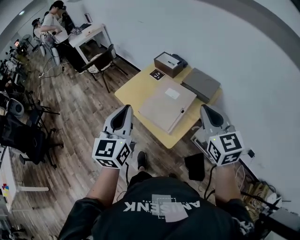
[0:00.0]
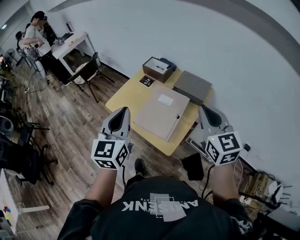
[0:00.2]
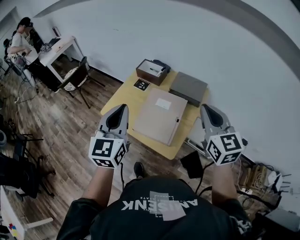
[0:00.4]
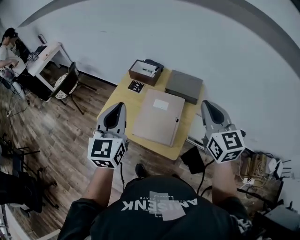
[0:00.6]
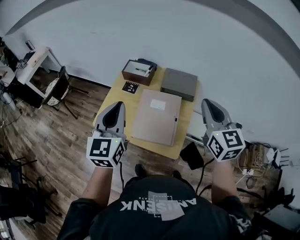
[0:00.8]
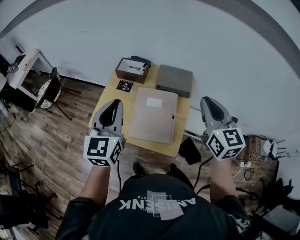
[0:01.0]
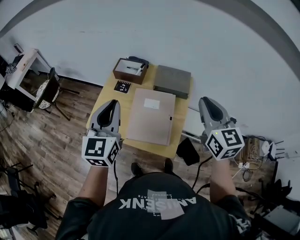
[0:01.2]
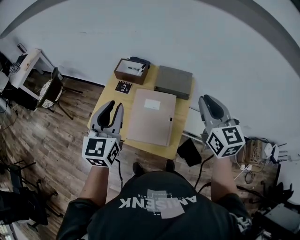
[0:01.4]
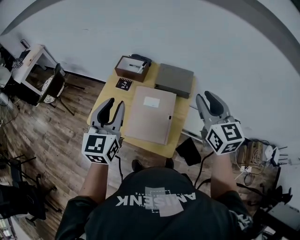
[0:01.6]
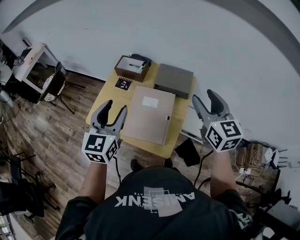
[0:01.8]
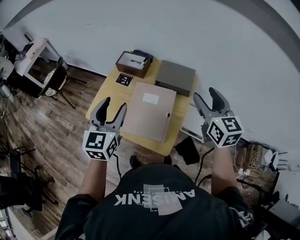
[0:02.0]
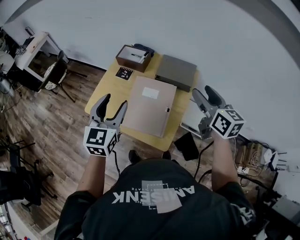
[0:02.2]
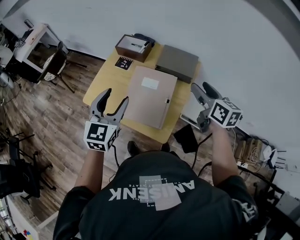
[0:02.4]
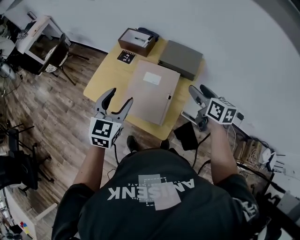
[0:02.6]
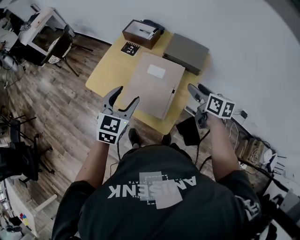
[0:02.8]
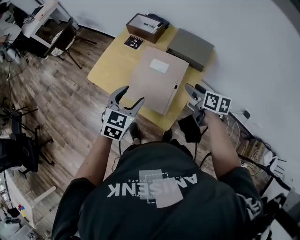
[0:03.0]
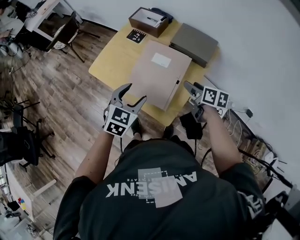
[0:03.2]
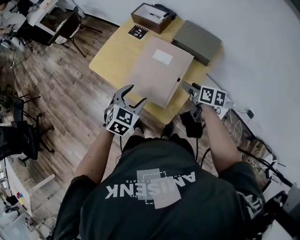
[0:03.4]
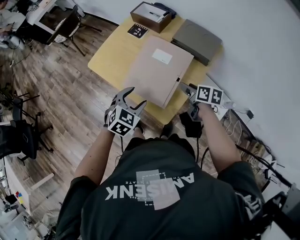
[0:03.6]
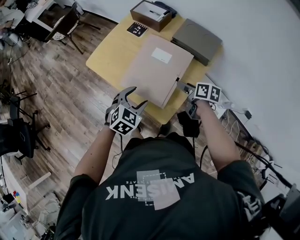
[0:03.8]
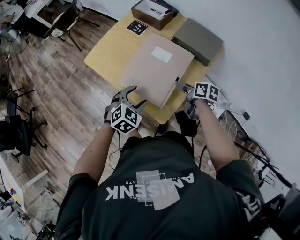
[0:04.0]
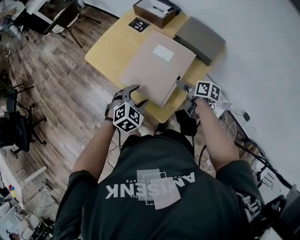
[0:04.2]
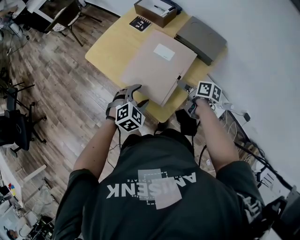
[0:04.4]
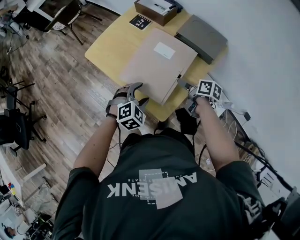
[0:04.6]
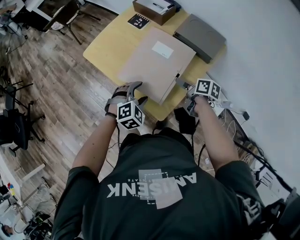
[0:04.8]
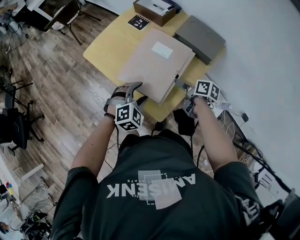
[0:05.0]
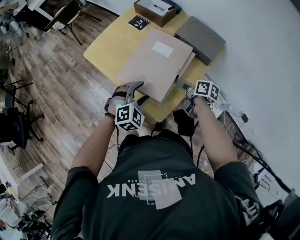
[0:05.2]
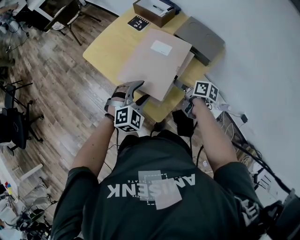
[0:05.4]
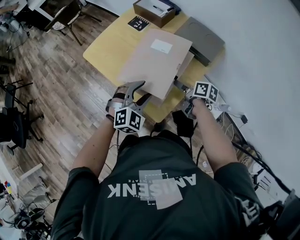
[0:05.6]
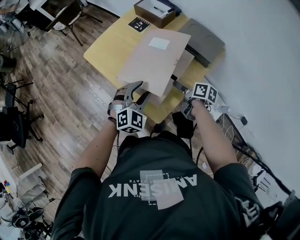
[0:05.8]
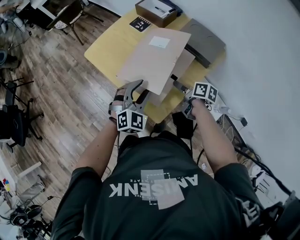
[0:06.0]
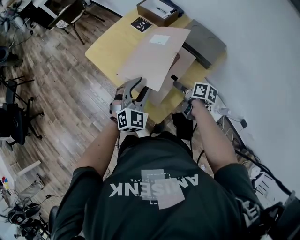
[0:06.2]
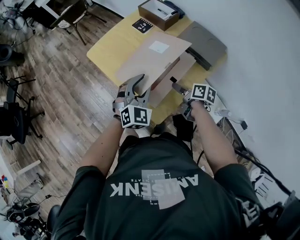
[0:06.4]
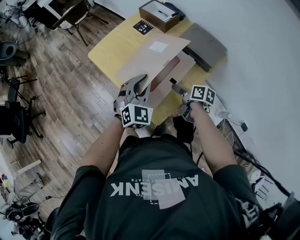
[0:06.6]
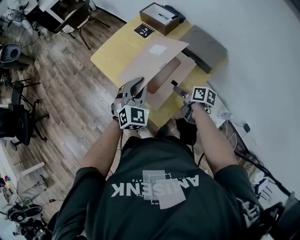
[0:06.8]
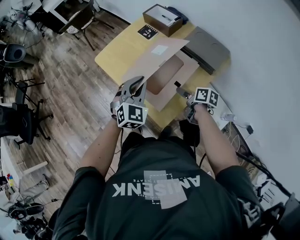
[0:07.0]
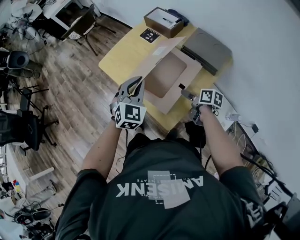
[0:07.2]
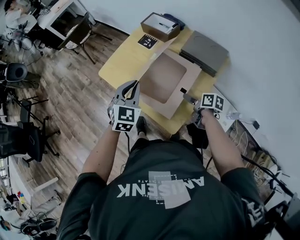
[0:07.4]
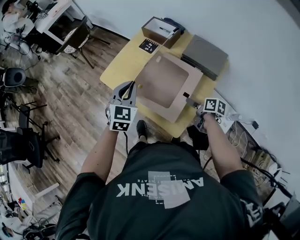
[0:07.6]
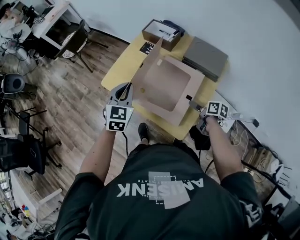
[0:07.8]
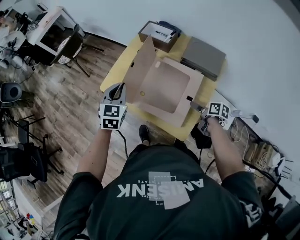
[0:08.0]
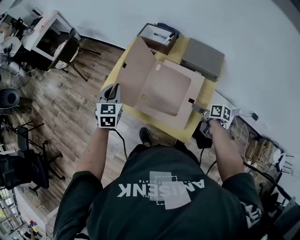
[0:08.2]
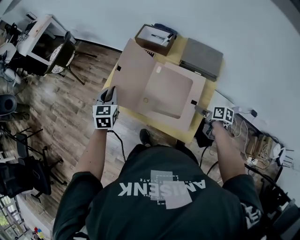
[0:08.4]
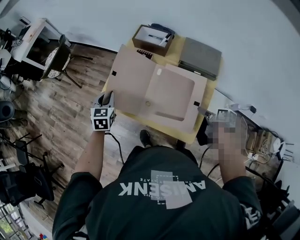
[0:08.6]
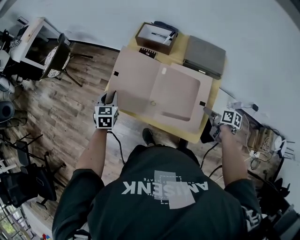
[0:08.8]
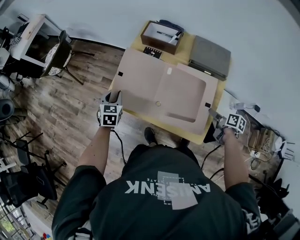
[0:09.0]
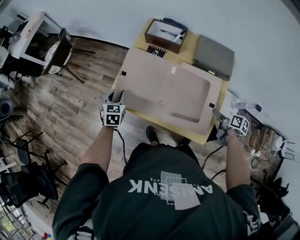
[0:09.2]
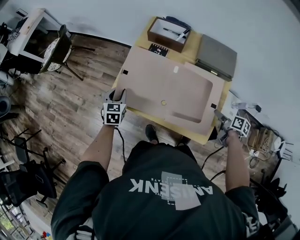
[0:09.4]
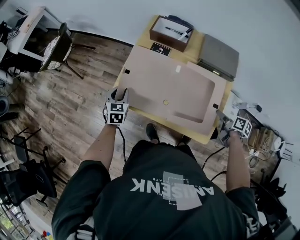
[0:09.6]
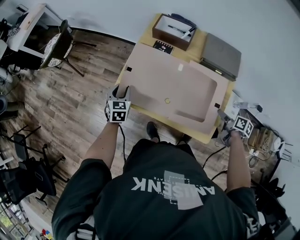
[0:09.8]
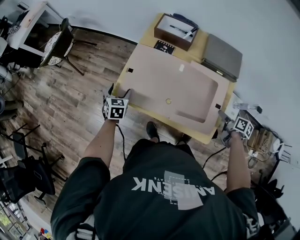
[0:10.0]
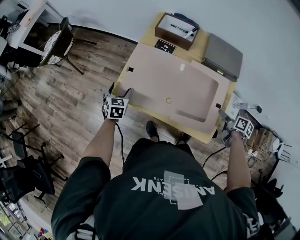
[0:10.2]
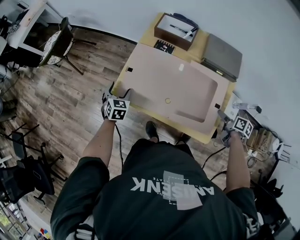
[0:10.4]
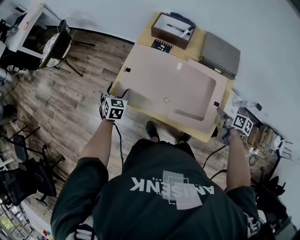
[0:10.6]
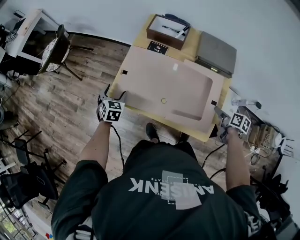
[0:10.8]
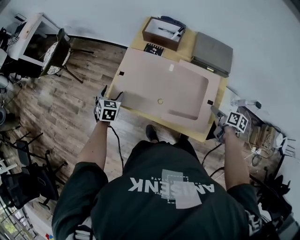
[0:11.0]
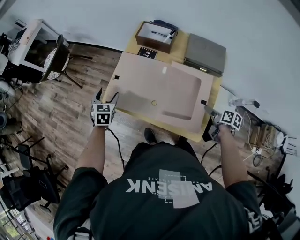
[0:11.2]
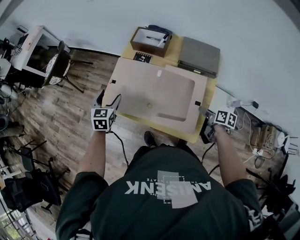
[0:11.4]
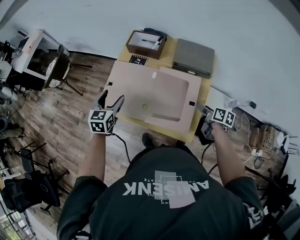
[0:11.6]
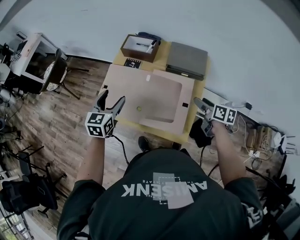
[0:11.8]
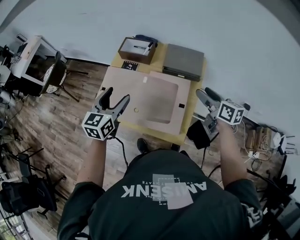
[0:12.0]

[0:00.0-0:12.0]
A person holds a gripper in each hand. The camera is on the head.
0:00.0 to 0:01.6: The right gripper ends up approximately 10 cm from where it was, and changes its angle by some 30 degrees; the left gripper changes place by about 20 cm, and turns by roughly 30 degrees.
0:01.6 to 0:03.0: Both grippers travel together downward, approximately 25 cm. The left gripper rotates some 30 degrees, and opens; the right gripper turns by roughly 50 degrees, and opens up.
0:03.0 to 0:04.4: The two grippers go some 15 cm downward. The left gripper changes its angle by some 30 degrees. Meanwhile the right gripper turns by some 20 degrees.
0:04.4 to 0:06.0: The left gripper moves upward, approximately 5 cm, and rotates roughly 30 degrees.
0:06.0 to 0:07.6: The left gripper shifts some 15 cm forward, upward and to the left, changes its angle by some 20 degrees, and closes up.
0:07.6 to 0:09.0: The right gripper changes its angle by some 20 degrees. The left gripper heads forward, to the left and downward, covering some 25 cm.
0:09.0 to 0:10.4: The left gripper heads downward, covering some 5 cm, and opens its fingers.
0:10.4 to 0:12.0: The right gripper heads upward, covering about 20 cm, and tips its fingers upward by approximately 30 degrees. Meanwhile the left gripper travels upward and to the right by approximately 35 cm, and swivels approximately 40 degrees.

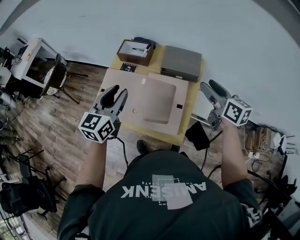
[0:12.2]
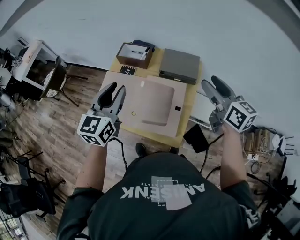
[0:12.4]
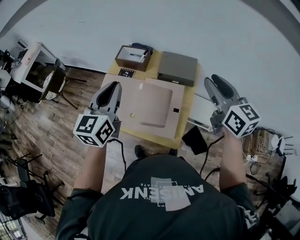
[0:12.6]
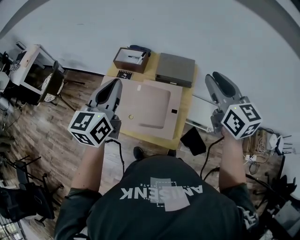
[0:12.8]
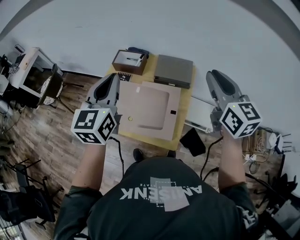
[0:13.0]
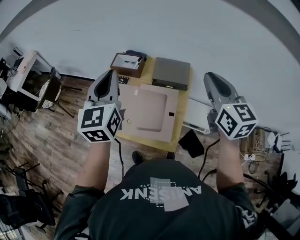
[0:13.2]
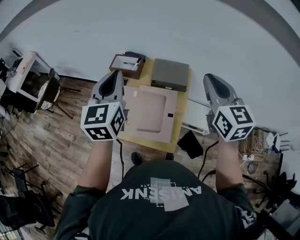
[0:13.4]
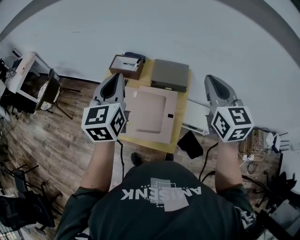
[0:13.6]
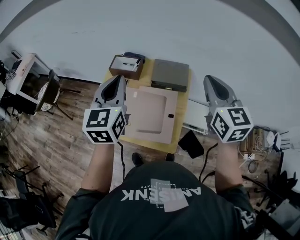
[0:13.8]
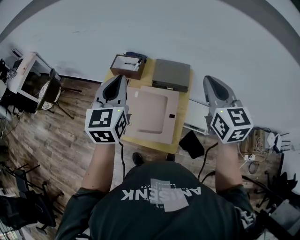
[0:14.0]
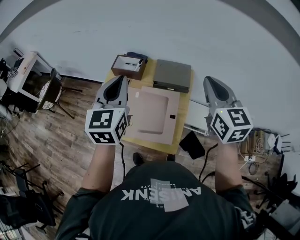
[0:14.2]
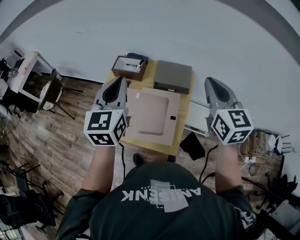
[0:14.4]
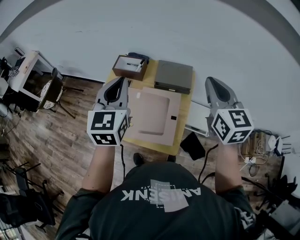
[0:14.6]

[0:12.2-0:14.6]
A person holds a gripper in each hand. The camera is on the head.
0:12.2 to 0:13.4: Both grippers move upward, about 15 cm. The left gripper closes up. The right gripper turns by roughly 30 degrees, and closes.
0:13.4 to 0:14.6: The grippers stay close to where they were, moving slightly.

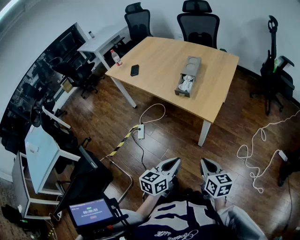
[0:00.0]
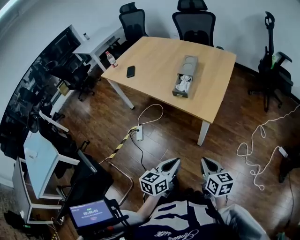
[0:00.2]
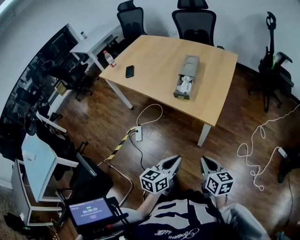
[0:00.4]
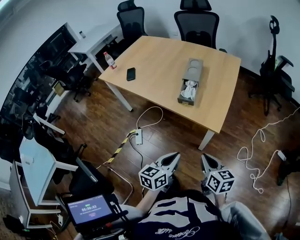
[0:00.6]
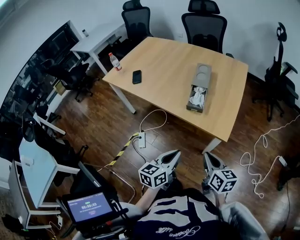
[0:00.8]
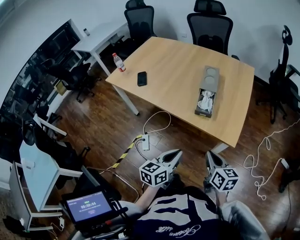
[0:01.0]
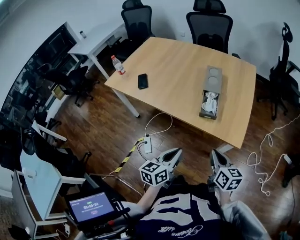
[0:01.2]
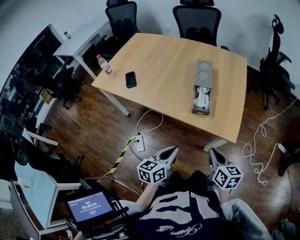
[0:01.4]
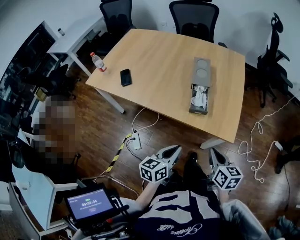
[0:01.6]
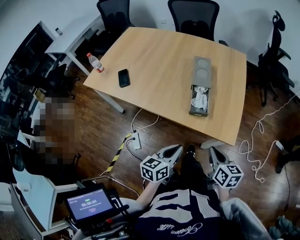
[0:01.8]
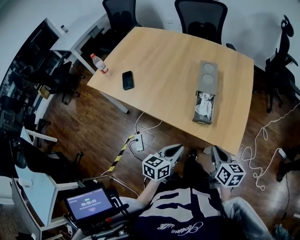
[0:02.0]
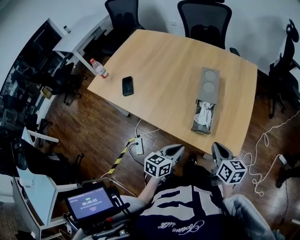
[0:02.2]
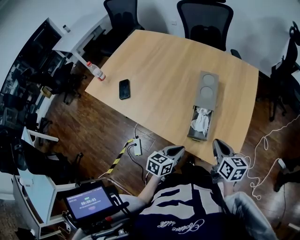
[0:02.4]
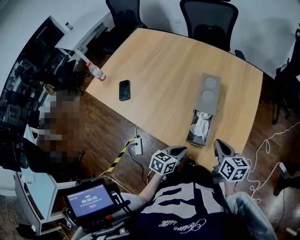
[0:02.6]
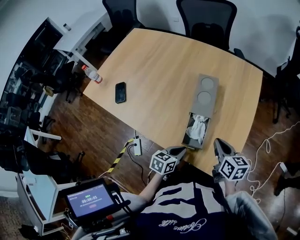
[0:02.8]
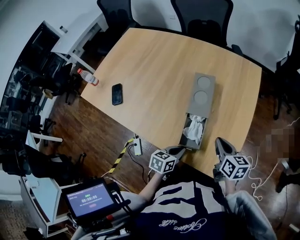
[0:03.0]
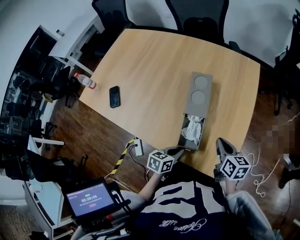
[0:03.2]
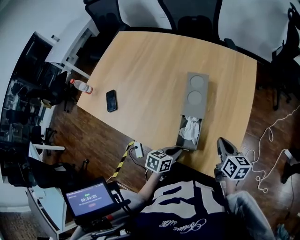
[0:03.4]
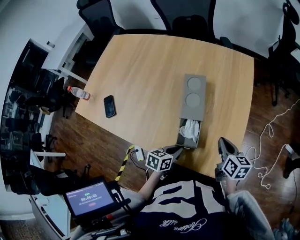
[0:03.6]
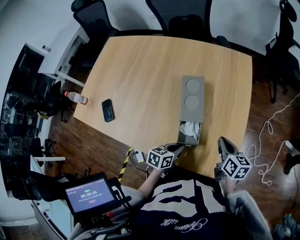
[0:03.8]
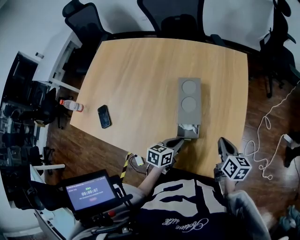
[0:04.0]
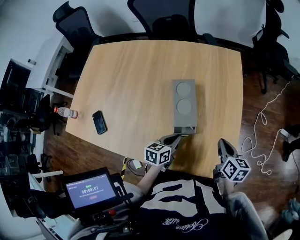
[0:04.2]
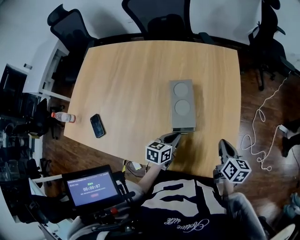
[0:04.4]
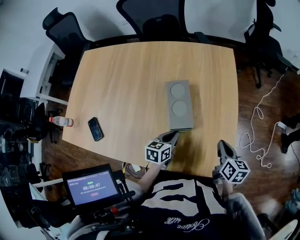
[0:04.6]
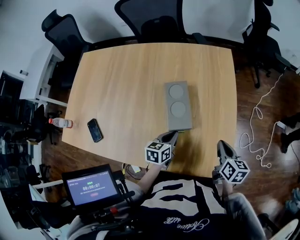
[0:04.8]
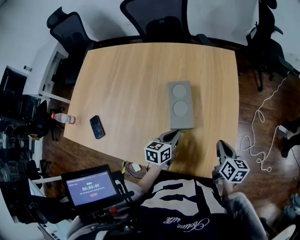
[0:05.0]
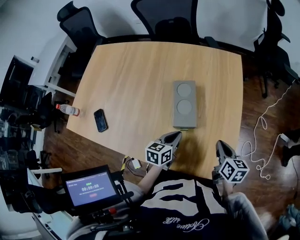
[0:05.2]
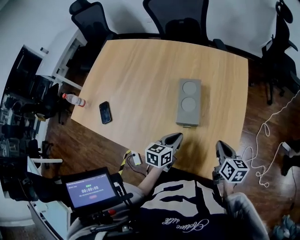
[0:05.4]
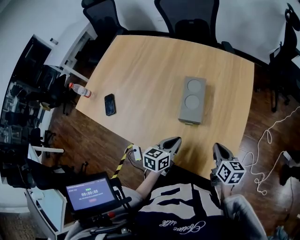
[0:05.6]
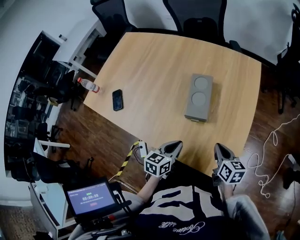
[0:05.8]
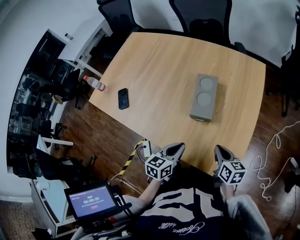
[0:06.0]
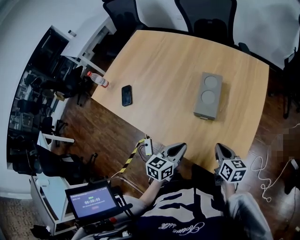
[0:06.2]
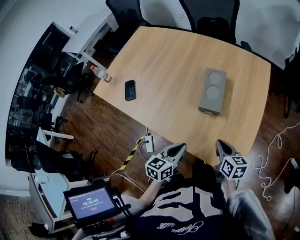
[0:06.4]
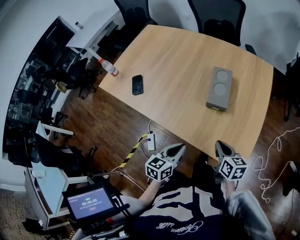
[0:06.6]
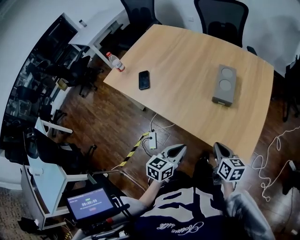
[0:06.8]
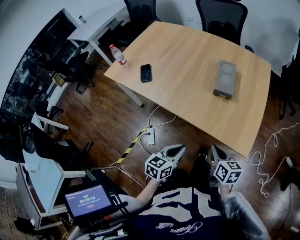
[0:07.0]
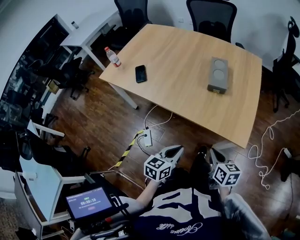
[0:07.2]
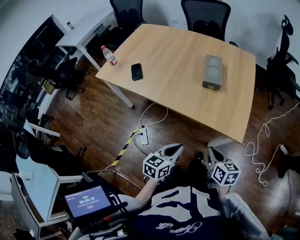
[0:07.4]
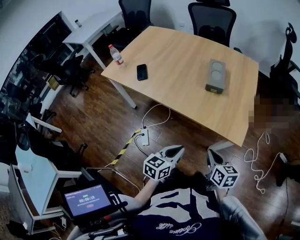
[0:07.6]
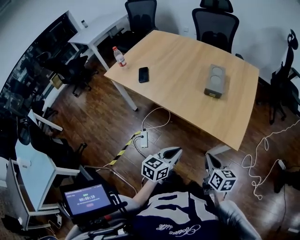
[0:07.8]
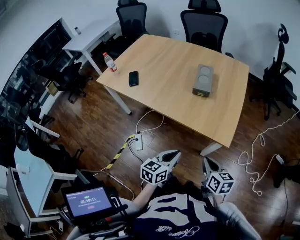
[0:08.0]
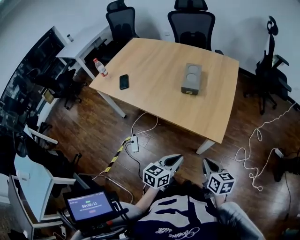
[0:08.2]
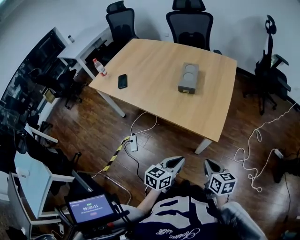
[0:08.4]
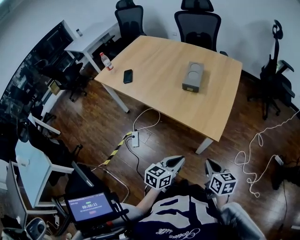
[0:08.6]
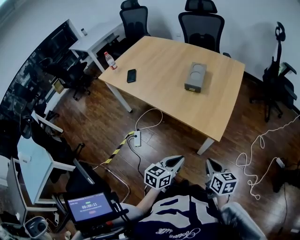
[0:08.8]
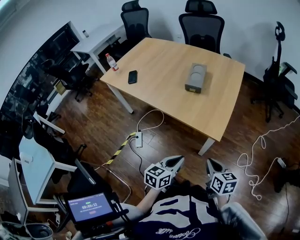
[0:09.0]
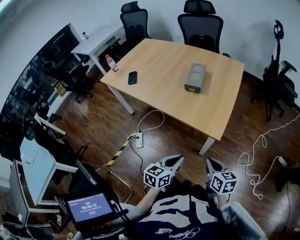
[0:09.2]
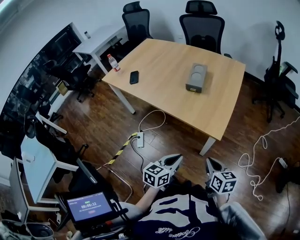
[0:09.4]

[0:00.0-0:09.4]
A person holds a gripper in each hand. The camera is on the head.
0:00.0 to 0:01.6: Both grippers move forward and to the left, some 30 cm.
0:01.6 to 0:03.2: The right gripper is displaced forward by about 30 cm, while the left gripper shifts approximately 25 cm forward and downward, and changes its angle by some 20 degrees.
0:03.2 to 0:04.8: The left gripper travels forward by some 15 cm. Meanwhile the right gripper ends up some 5 cm from where it was, and changes its angle by approximately 20 degrees.
0:04.8 to 0:06.2: The right gripper changes place by some 10 cm, and rotates roughly 30 degrees. Meanwhile the left gripper shifts by about 15 cm.
0:06.2 to 0:07.8: Both grippers travel together backward, approximately 25 cm.
0:07.8 to 0:09.4: The grippers both shift to the right and backward by about 15 cm.
